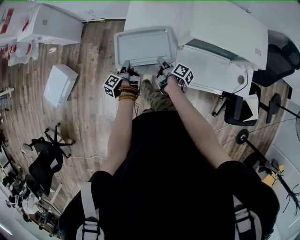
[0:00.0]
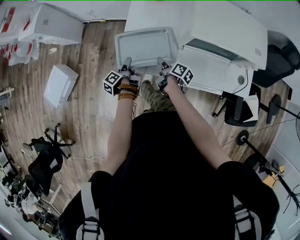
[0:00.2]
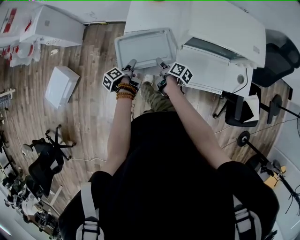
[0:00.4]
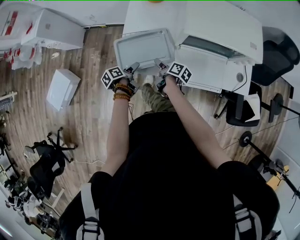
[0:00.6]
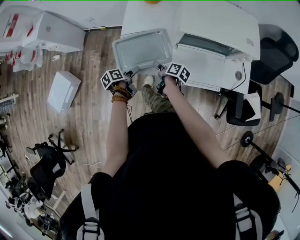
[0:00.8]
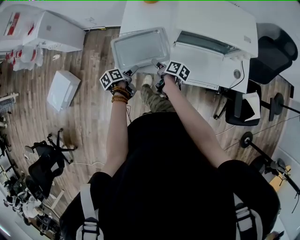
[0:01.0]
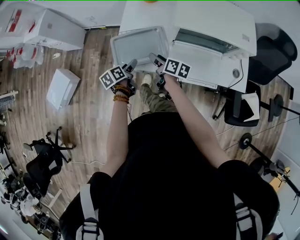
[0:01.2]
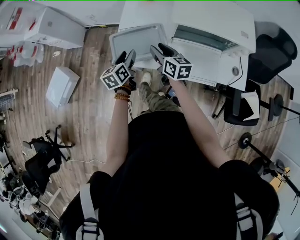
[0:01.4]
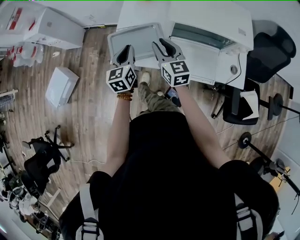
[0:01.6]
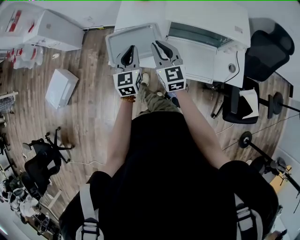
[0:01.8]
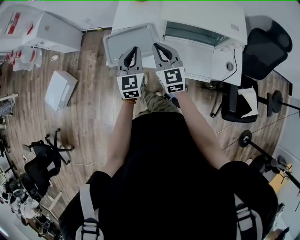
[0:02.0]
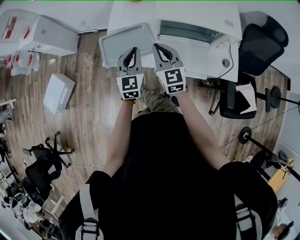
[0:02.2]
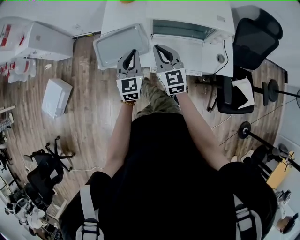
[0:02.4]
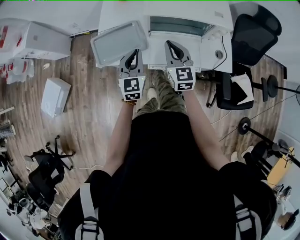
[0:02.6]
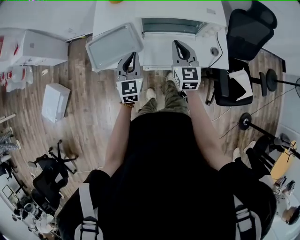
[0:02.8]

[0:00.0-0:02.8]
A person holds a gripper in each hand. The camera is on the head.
0:00.0 to 0:01.4: The right gripper heads upward, covering approximately 15 cm, rotates around the line of its fingers by approximately 60 degrees, counterclockwise from behind, and opens its fingers. Meanwhile the left gripper travels upward and to the right by roughly 15 cm, twists some 60 degrees clockwise, seen from behind, and opens up.
0:01.4 to 0:02.8: The left gripper shifts roughly 20 cm to the right, upward and backward, turns by approximately 40 degrees, and closes; the right gripper shifts about 20 cm to the right and upward, changes its angle by about 40 degrees, and closes its fingers.

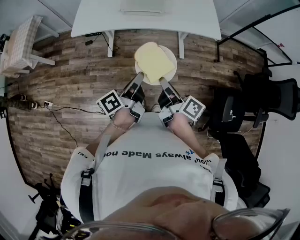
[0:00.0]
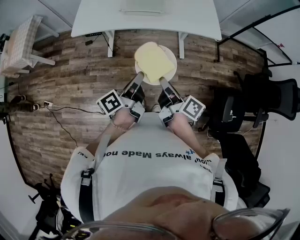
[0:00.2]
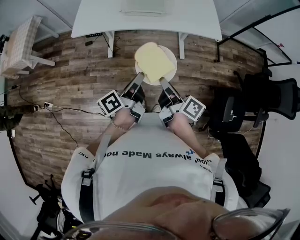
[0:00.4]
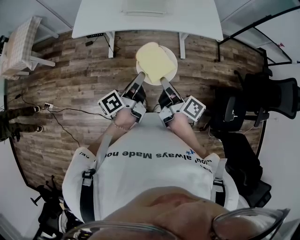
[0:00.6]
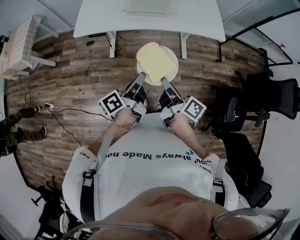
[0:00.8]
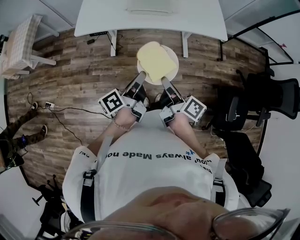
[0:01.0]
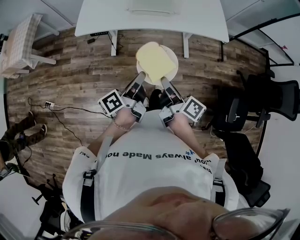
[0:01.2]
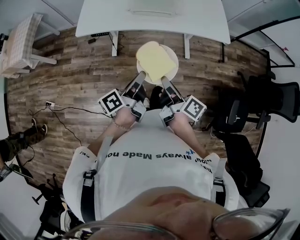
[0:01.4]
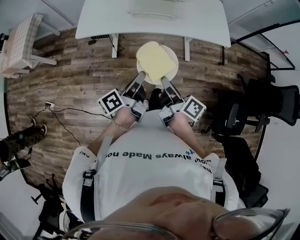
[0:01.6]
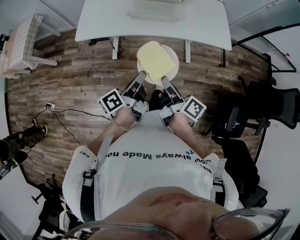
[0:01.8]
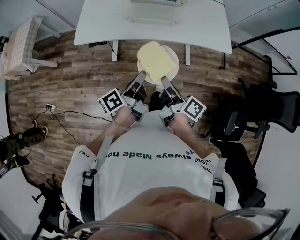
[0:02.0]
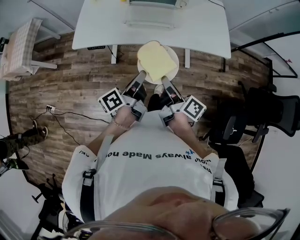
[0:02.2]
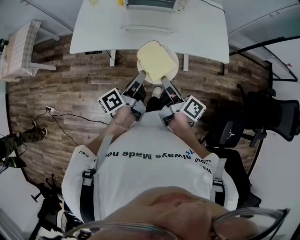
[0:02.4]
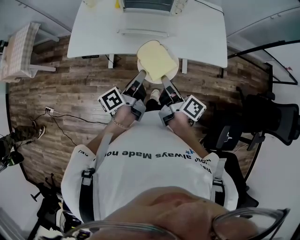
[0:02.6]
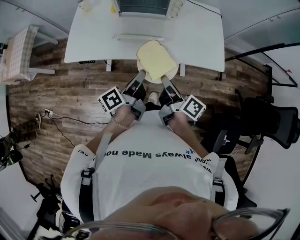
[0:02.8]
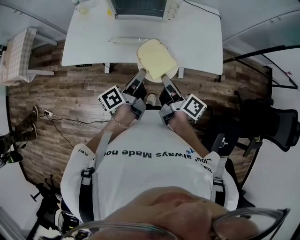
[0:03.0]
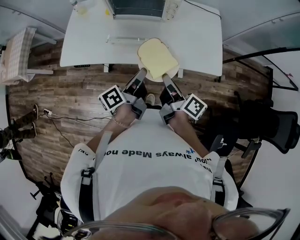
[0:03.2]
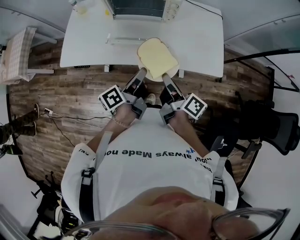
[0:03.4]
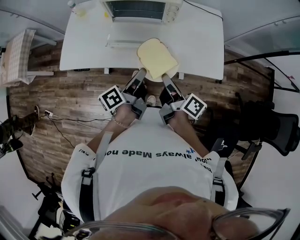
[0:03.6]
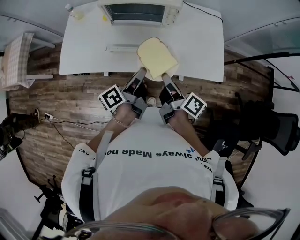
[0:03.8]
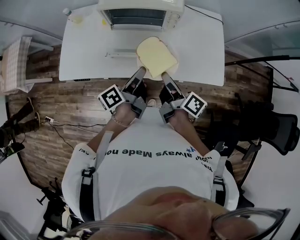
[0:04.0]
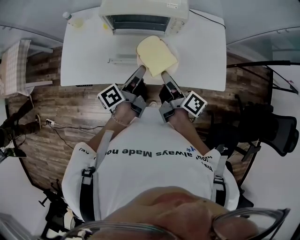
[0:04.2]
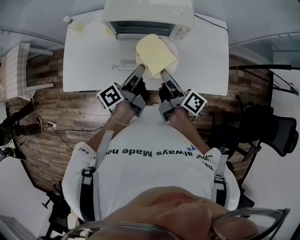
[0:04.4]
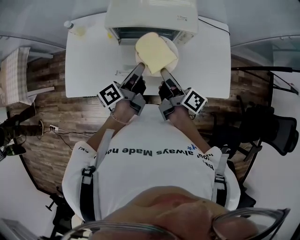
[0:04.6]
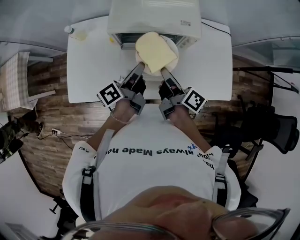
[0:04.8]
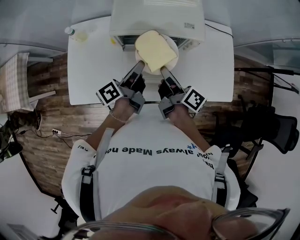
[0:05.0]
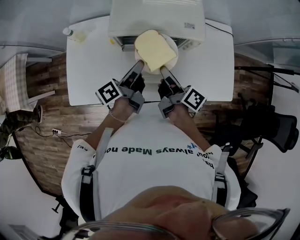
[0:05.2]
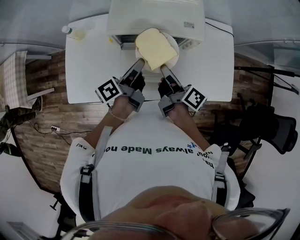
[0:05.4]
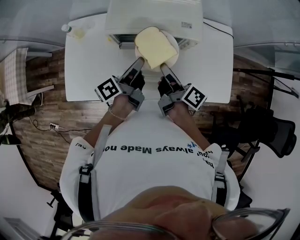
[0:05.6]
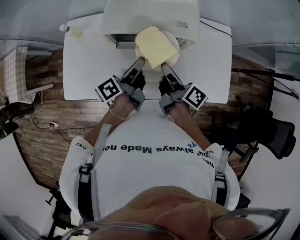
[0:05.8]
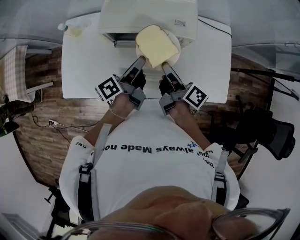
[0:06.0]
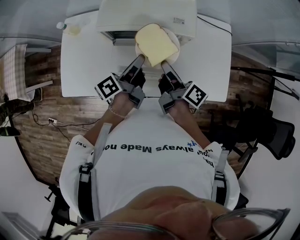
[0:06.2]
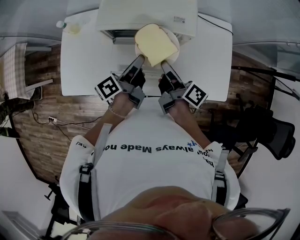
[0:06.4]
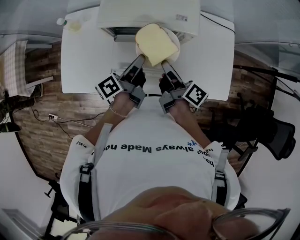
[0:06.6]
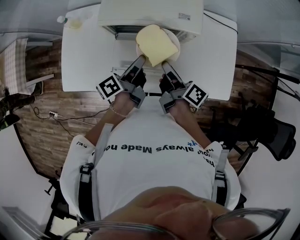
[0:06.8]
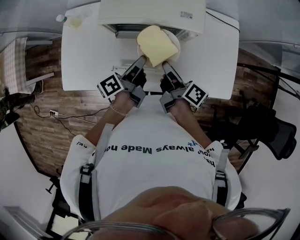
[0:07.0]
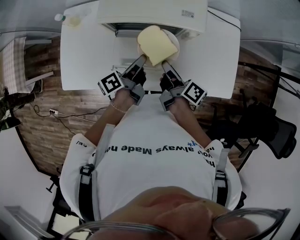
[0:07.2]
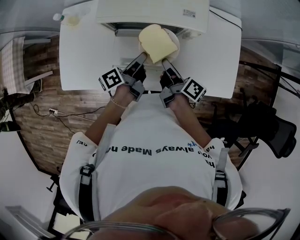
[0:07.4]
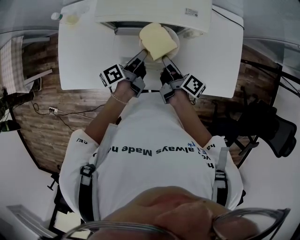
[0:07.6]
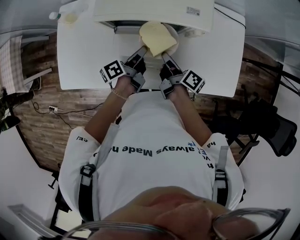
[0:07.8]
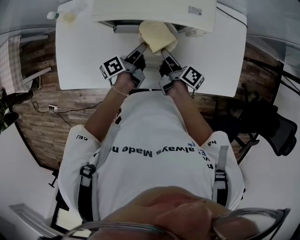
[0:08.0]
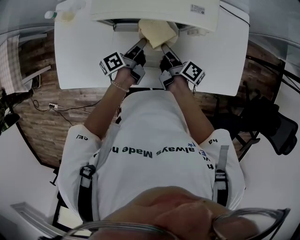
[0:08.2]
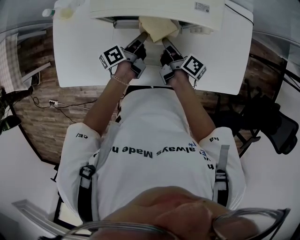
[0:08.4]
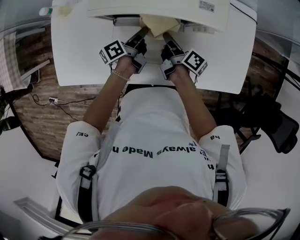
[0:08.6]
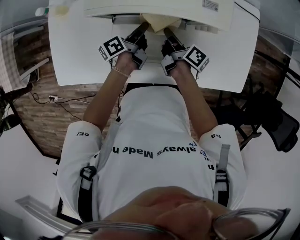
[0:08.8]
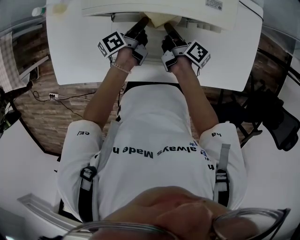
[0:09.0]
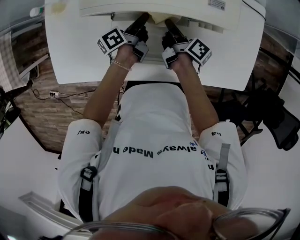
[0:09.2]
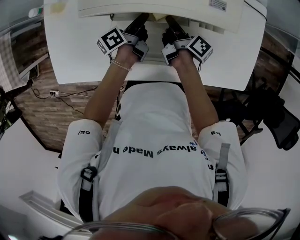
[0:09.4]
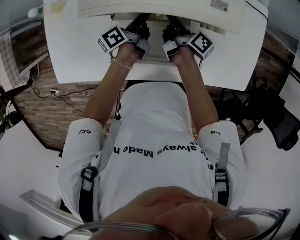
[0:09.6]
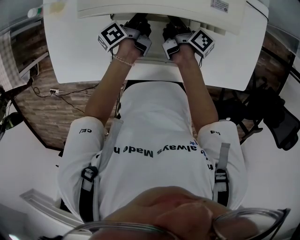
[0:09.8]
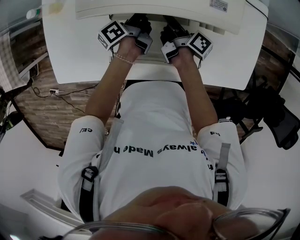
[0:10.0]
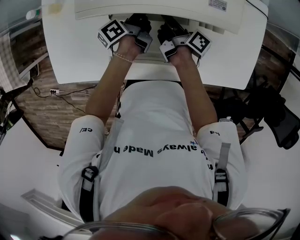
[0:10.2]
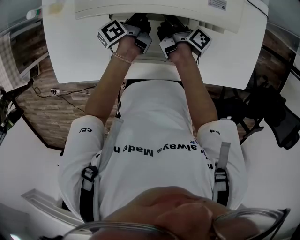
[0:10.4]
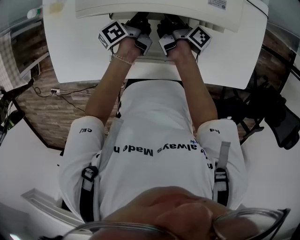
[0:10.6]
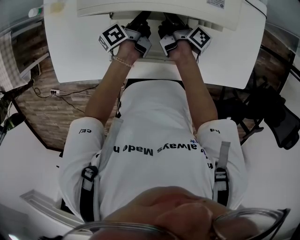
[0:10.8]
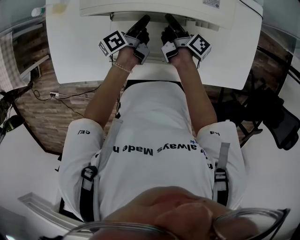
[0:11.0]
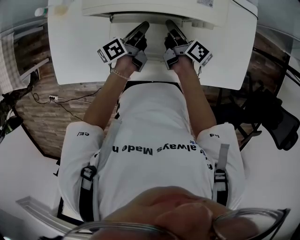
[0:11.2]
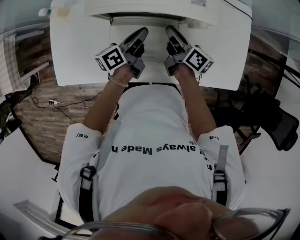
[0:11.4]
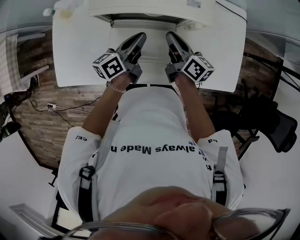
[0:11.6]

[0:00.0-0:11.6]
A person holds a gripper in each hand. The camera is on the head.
0:00.0 to 0:01.4: Both grippers move to the left, approximately 5 cm.
0:01.4 to 0:02.8: The grippers both shift forward and to the right by approximately 25 cm.
0:02.8 to 0:04.4: Both grippers travel together forward, roughly 25 cm.
0:04.4 to 0:05.8: The grippers both shift forward by approximately 10 cm.
0:05.8 to 0:07.2: Both grippers travel together downward, some 5 cm.
0:07.2 to 0:08.8: Both grippers travel together downward and forward, some 20 cm.
0:08.8 to 0:10.2: The left gripper travels forward by approximately 5 cm.
0:10.2 to 0:11.6: The right gripper travels upward, backward and to the right by some 15 cm, and rolls counterclockwise, seen from behind, by about 40 degrees; the left gripper shifts about 15 cm upward and backward, and turns by some 30 degrees.

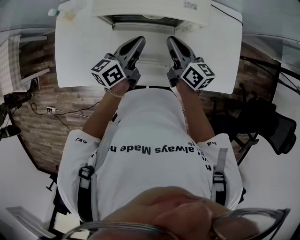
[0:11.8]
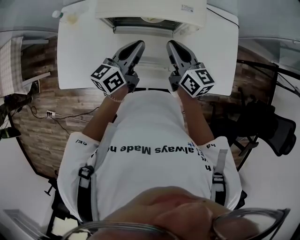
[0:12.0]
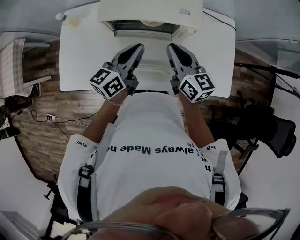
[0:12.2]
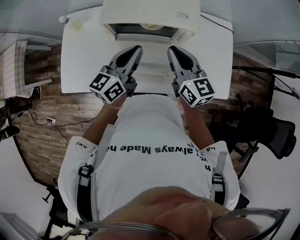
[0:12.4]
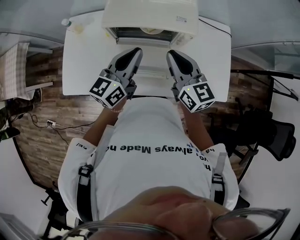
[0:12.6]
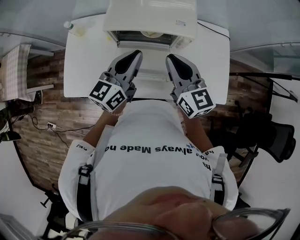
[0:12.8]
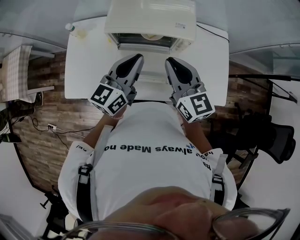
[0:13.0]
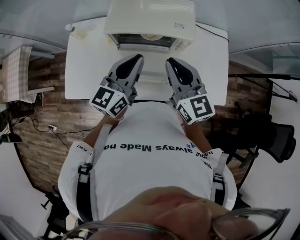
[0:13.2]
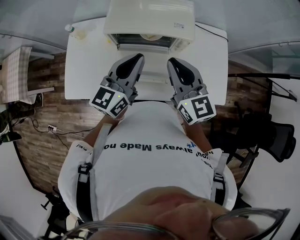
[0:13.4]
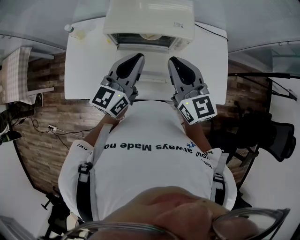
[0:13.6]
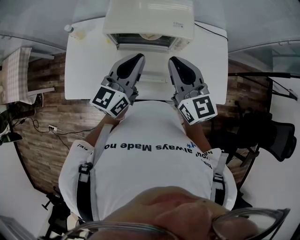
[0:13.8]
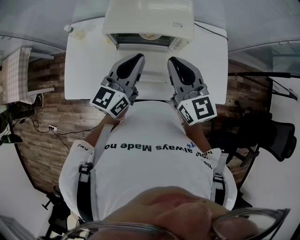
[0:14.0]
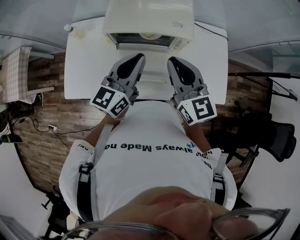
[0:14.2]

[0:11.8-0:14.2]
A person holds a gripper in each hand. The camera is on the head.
0:11.8 to 0:13.0: The right gripper goes approximately 20 cm upward and backward, and rotates approximately 30 degrees. The left gripper moves upward, some 15 cm, and rotates some 30 degrees.
0:13.0 to 0:14.2: There are only small adjustments of the grippers.

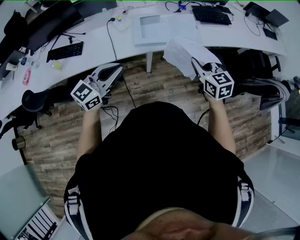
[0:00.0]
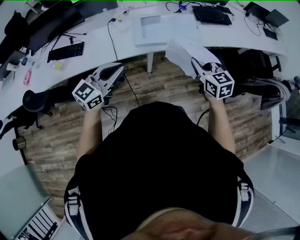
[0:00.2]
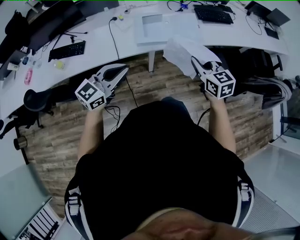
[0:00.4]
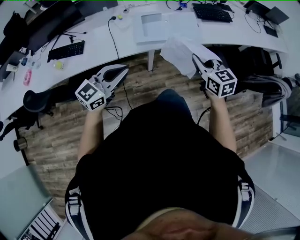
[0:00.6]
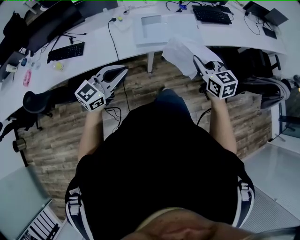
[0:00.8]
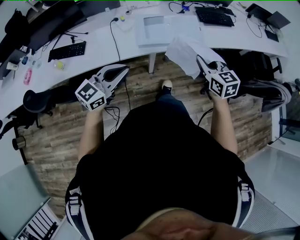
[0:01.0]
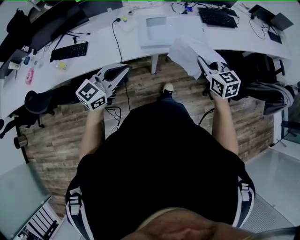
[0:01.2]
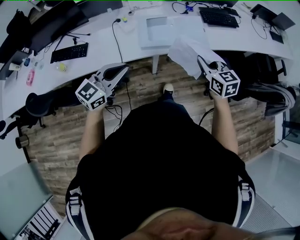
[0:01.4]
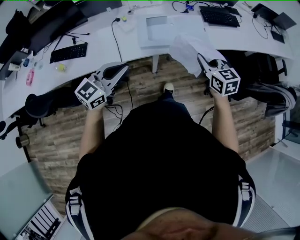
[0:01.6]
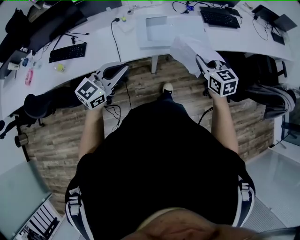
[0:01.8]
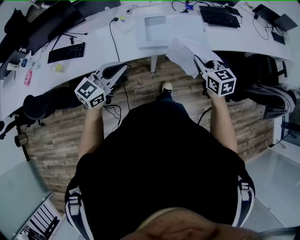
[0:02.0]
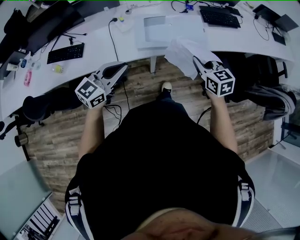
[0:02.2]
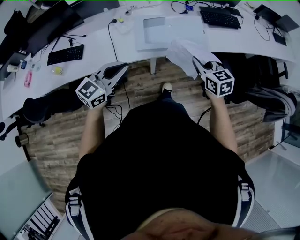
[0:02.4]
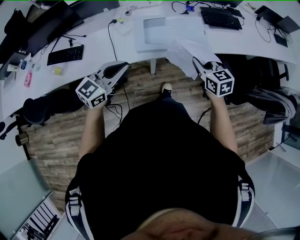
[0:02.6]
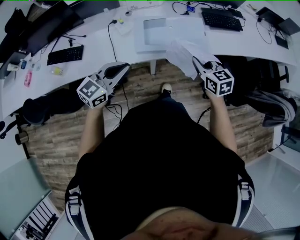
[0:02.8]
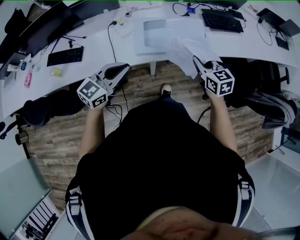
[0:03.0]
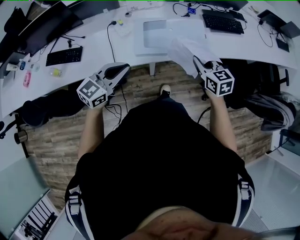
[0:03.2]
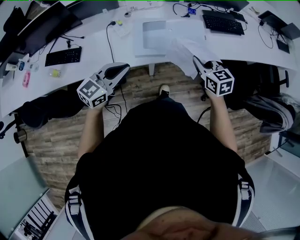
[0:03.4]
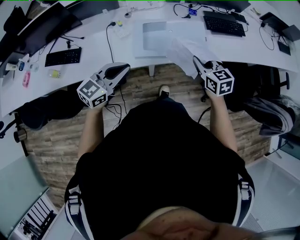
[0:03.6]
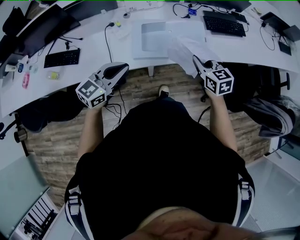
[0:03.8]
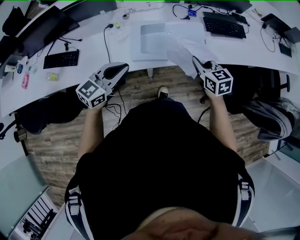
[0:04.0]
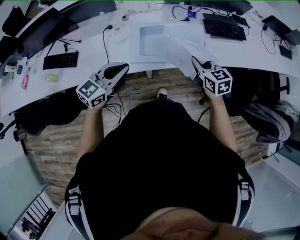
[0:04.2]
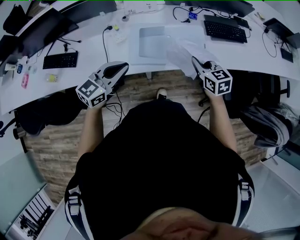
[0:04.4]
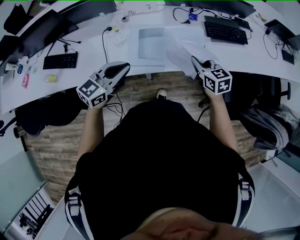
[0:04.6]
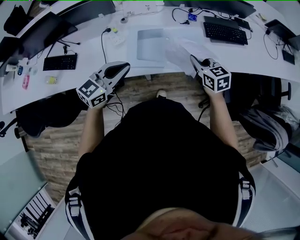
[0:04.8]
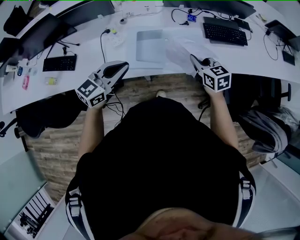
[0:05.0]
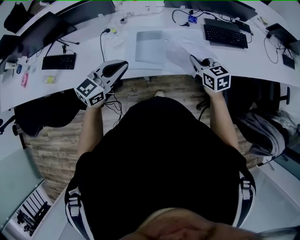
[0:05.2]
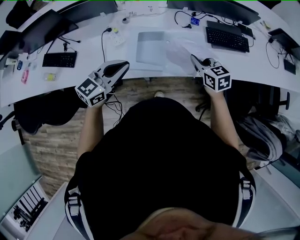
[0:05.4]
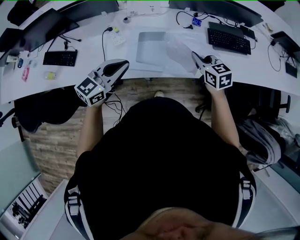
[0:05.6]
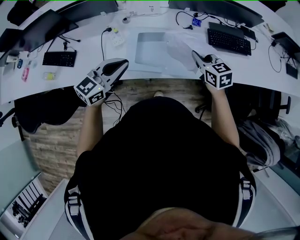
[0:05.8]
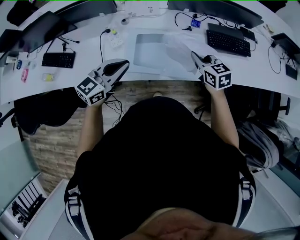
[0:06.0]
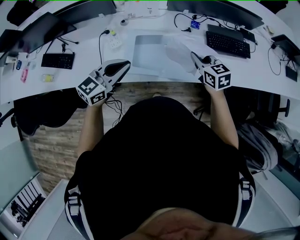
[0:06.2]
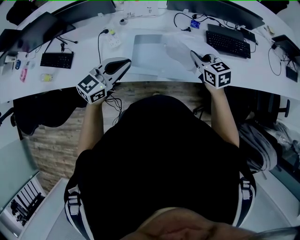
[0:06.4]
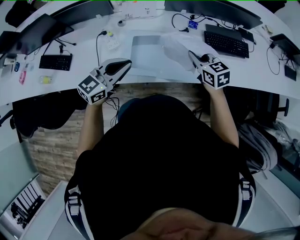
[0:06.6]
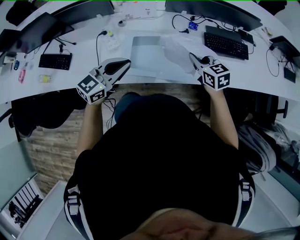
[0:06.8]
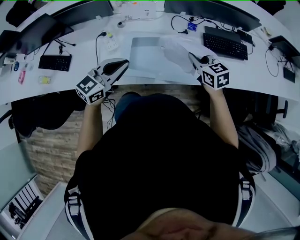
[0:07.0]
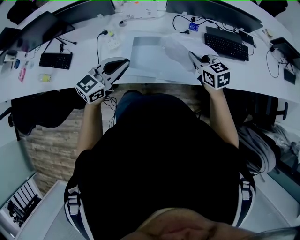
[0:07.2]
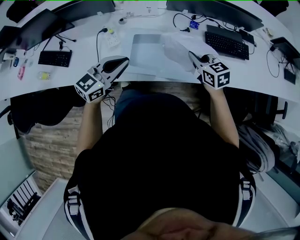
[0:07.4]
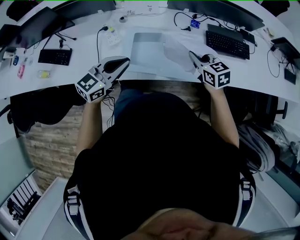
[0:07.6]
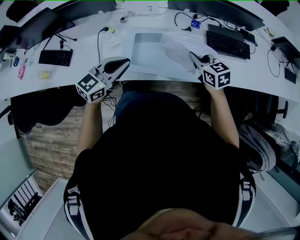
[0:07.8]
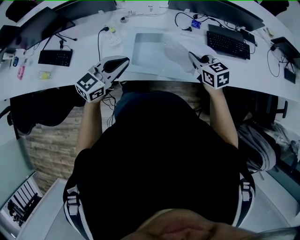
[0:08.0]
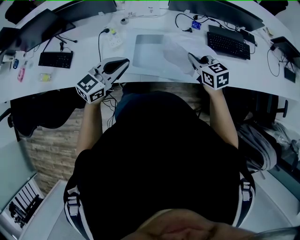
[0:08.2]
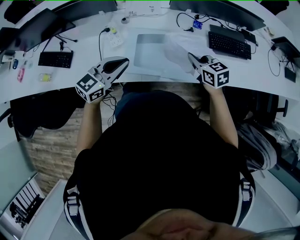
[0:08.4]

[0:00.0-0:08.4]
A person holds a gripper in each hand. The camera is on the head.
0:00.0 to 0:01.4: The right gripper shifts by about 5 cm.
0:01.4 to 0:02.8: Both grippers move forward, about 10 cm.
0:02.8 to 0:04.2: Both grippers move forward, about 10 cm.
0:04.2 to 0:05.6: The grippers both shift forward by approximately 10 cm.
0:05.6 to 0:07.0: The left gripper shifts by about 5 cm.
0:07.0 to 0:08.4: There are only small adjustments of the grippers.
